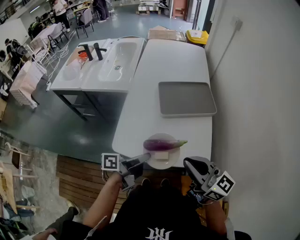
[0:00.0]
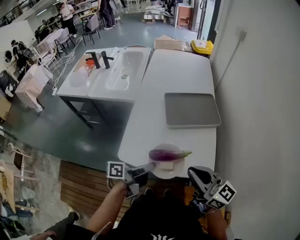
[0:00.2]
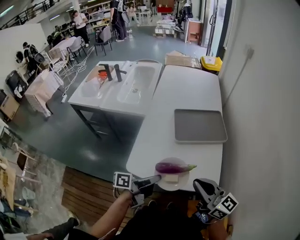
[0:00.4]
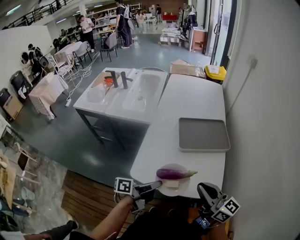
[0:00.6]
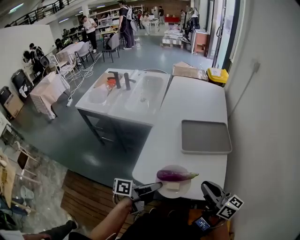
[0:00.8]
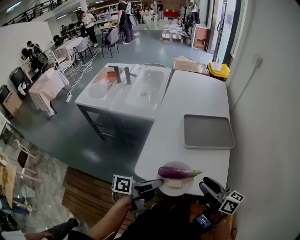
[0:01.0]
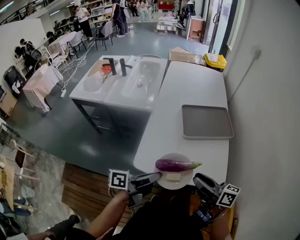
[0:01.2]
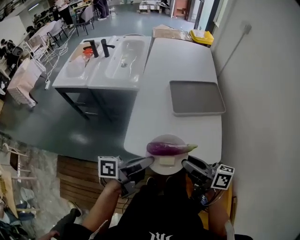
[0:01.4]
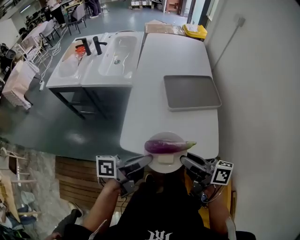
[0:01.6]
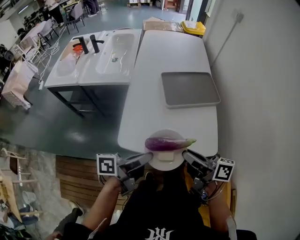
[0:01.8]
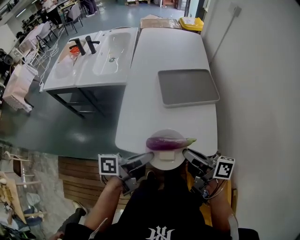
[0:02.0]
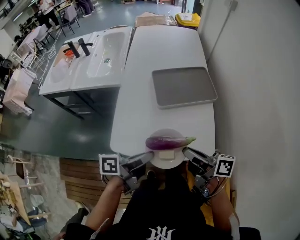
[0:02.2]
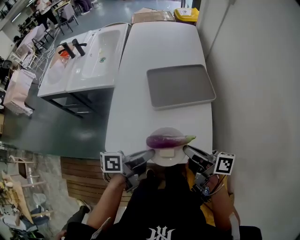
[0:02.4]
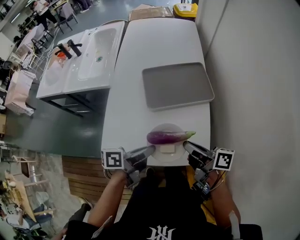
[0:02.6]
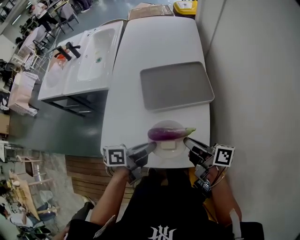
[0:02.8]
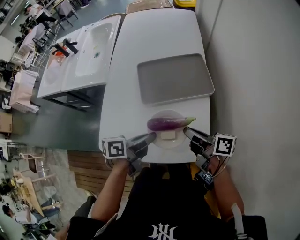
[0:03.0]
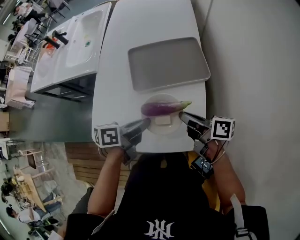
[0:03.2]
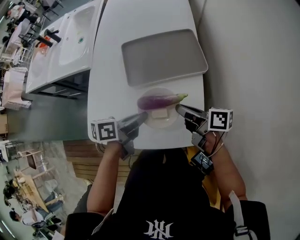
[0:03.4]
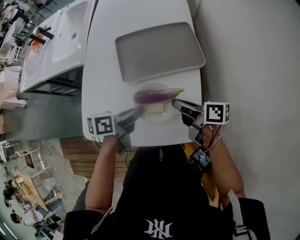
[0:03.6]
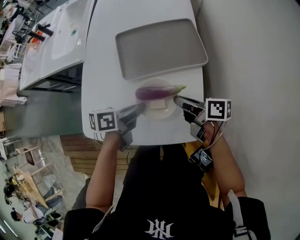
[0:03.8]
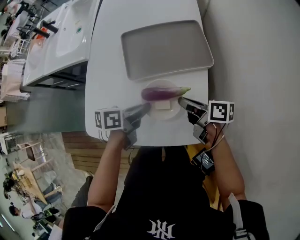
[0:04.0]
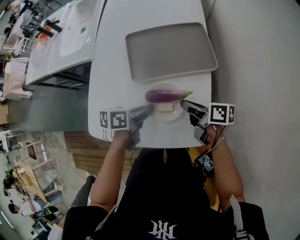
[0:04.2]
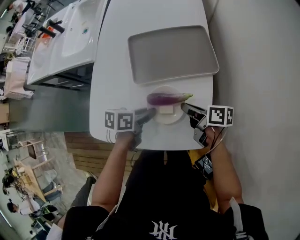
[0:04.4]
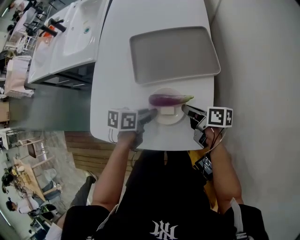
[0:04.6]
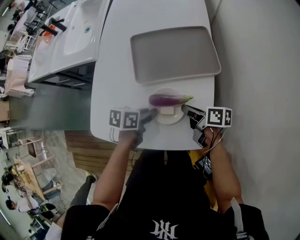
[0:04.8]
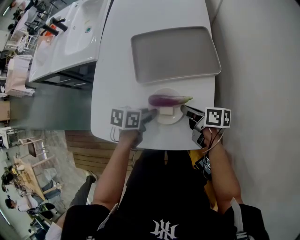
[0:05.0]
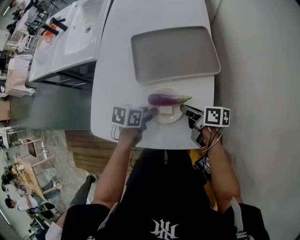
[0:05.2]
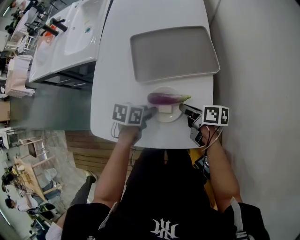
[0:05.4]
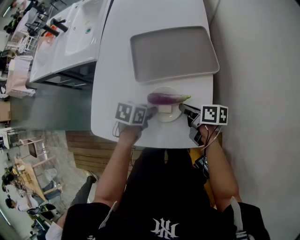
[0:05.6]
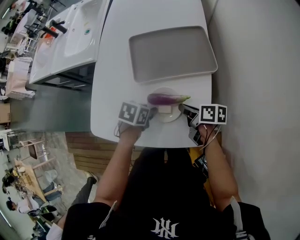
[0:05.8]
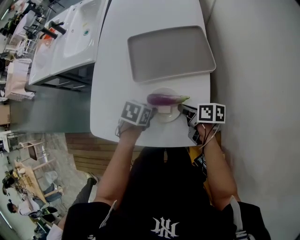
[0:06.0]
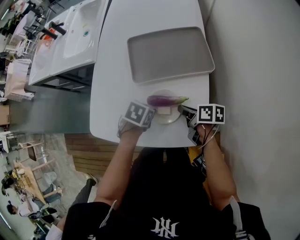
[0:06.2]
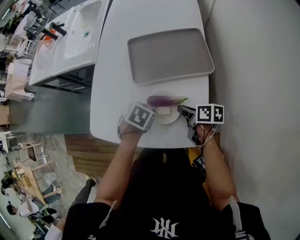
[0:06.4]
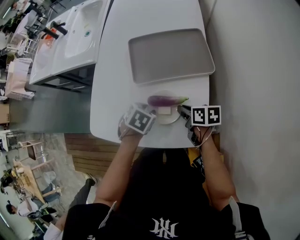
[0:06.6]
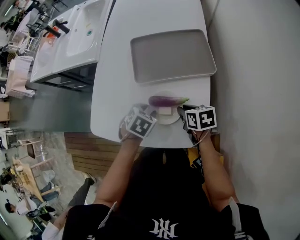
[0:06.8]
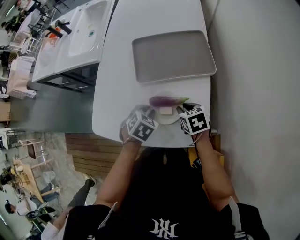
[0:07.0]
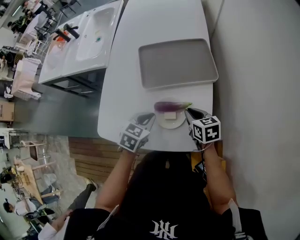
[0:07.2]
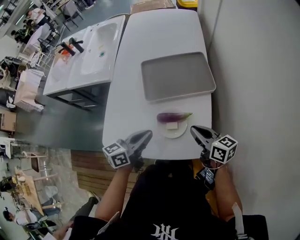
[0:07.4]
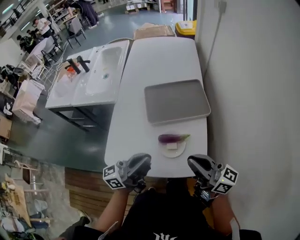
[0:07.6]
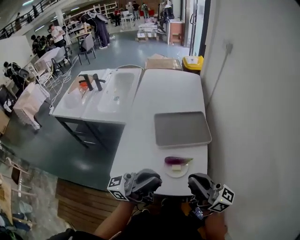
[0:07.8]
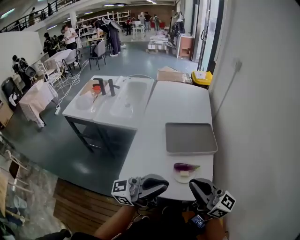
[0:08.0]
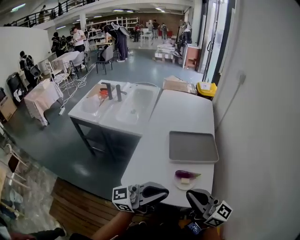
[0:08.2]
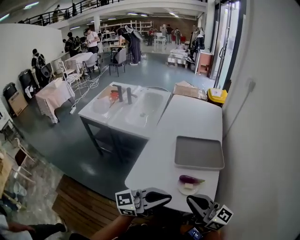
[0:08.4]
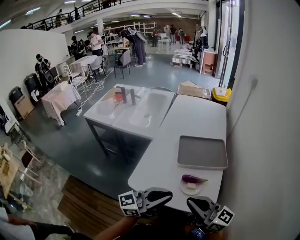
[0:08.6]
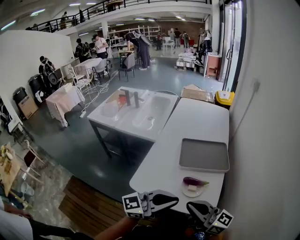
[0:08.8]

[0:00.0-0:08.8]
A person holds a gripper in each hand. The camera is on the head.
0:00.0 to 0:01.4: The left gripper shifts about 10 cm to the left, while the right gripper shifts about 10 cm to the left and downward, turns by approximately 40 degrees, and opens up.
0:01.4 to 0:03.0: Both grippers move to the right, forward and downward, roughly 30 cm. The right gripper closes its fingers.
0:03.0 to 0:04.4: The left gripper goes about 15 cm downward and forward, and changes its angle by about 20 degrees. Meanwhile the right gripper moves downward, roughly 15 cm.
0:04.4 to 0:05.8: The left gripper changes its angle by about 30 degrees.
0:05.8 to 0:07.4: Both grippers travel together upward, about 10 cm. The left gripper tips its fingers upward by about 50 degrees, and closes. Meanwhile the right gripper changes its angle by about 40 degrees.
0:07.4 to 0:08.8: The grippers both shift upward by about 25 cm. The left gripper changes its angle by roughly 40 degrees. The right gripper changes its angle by roughly 40 degrees.

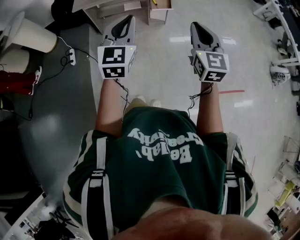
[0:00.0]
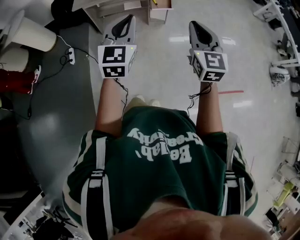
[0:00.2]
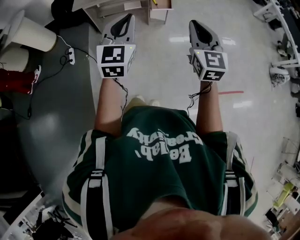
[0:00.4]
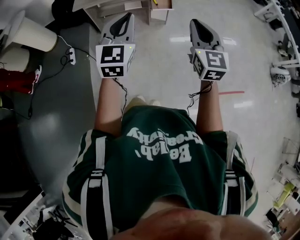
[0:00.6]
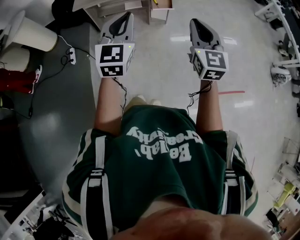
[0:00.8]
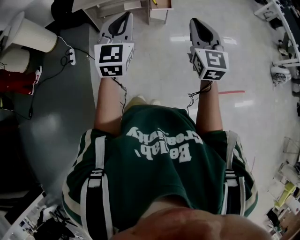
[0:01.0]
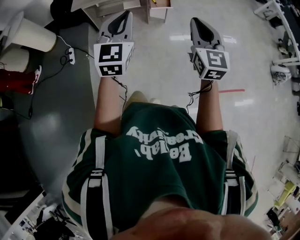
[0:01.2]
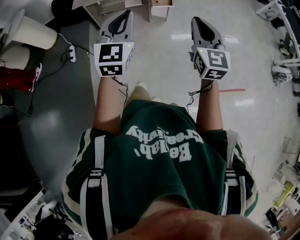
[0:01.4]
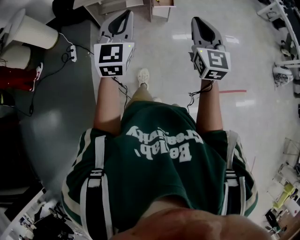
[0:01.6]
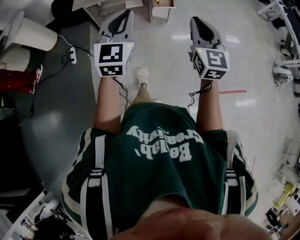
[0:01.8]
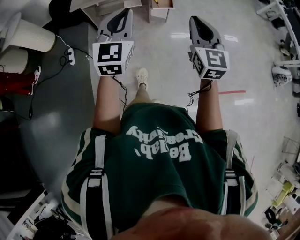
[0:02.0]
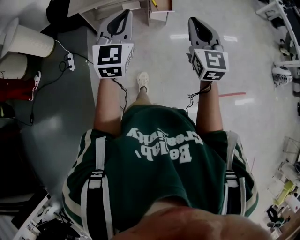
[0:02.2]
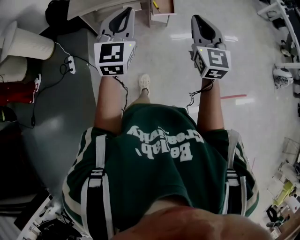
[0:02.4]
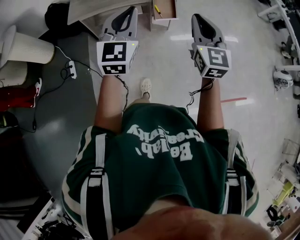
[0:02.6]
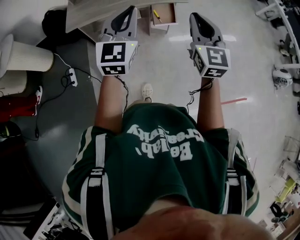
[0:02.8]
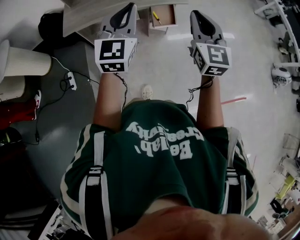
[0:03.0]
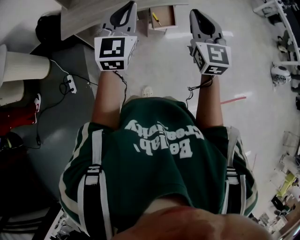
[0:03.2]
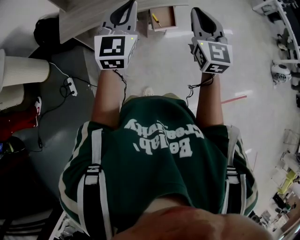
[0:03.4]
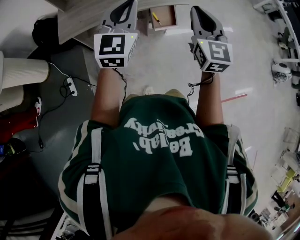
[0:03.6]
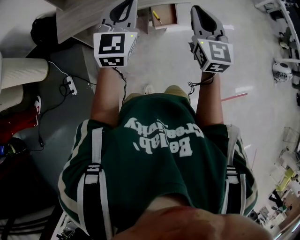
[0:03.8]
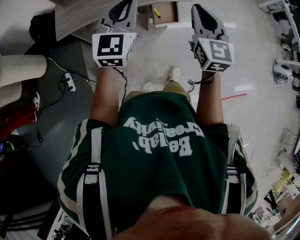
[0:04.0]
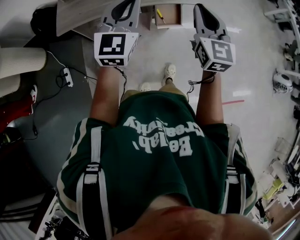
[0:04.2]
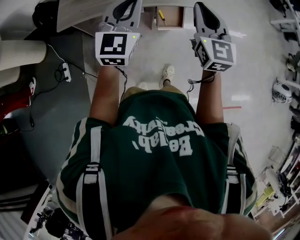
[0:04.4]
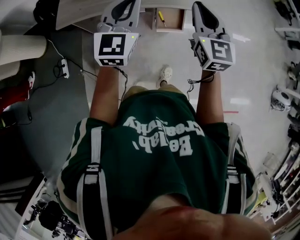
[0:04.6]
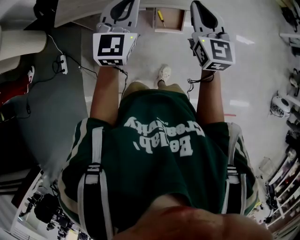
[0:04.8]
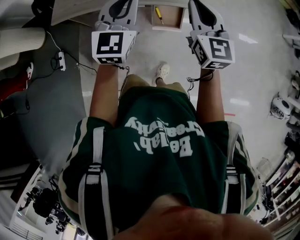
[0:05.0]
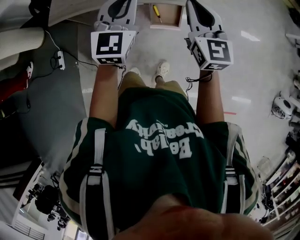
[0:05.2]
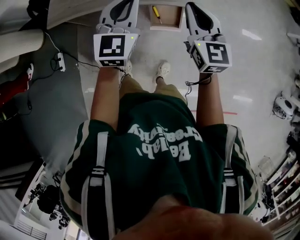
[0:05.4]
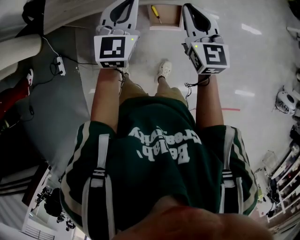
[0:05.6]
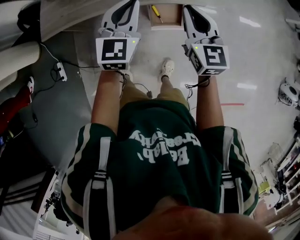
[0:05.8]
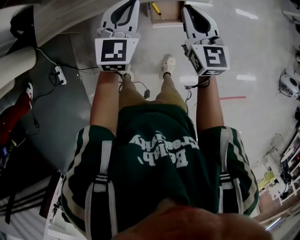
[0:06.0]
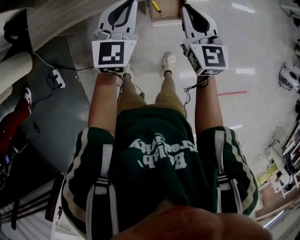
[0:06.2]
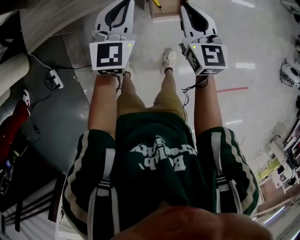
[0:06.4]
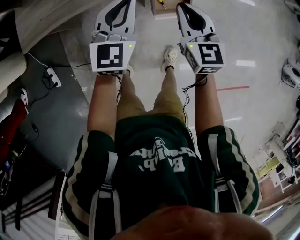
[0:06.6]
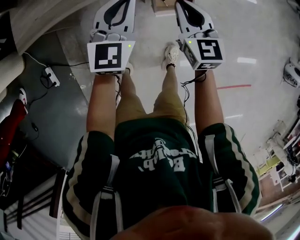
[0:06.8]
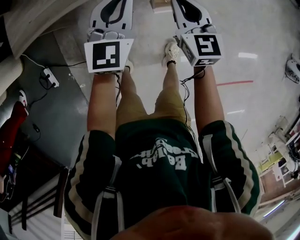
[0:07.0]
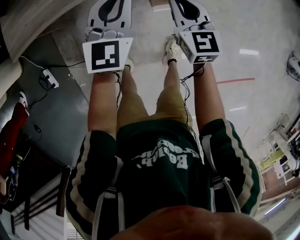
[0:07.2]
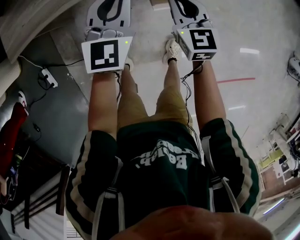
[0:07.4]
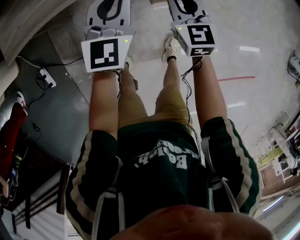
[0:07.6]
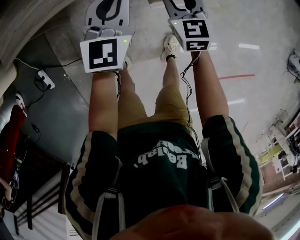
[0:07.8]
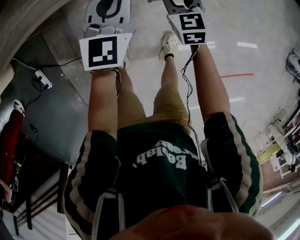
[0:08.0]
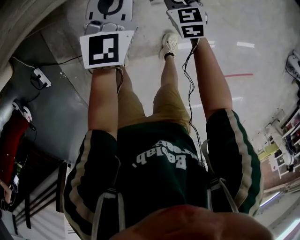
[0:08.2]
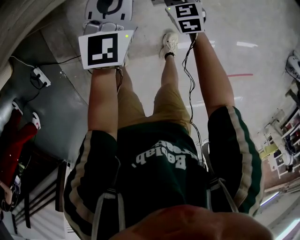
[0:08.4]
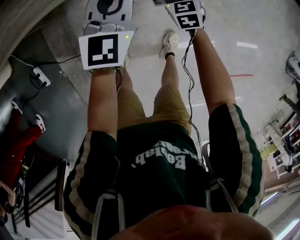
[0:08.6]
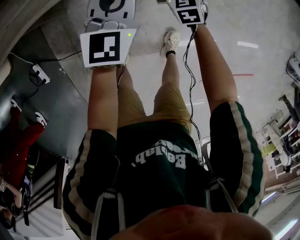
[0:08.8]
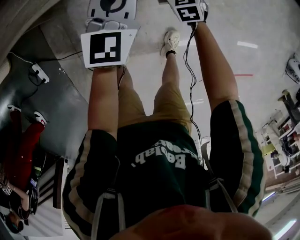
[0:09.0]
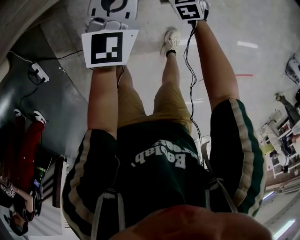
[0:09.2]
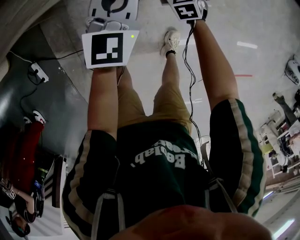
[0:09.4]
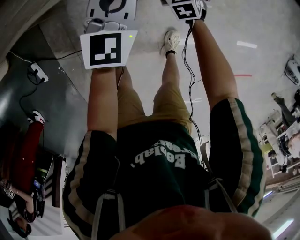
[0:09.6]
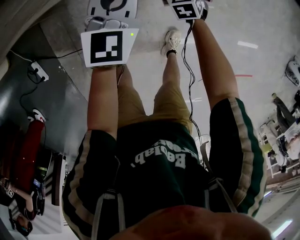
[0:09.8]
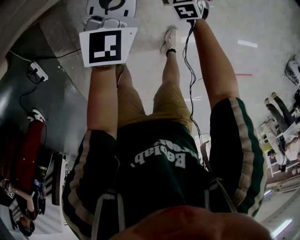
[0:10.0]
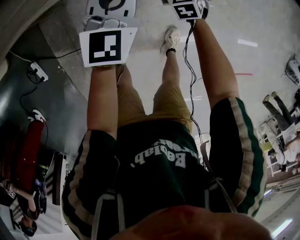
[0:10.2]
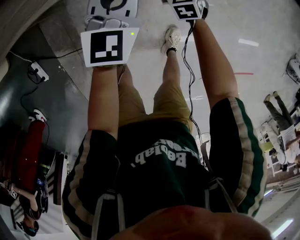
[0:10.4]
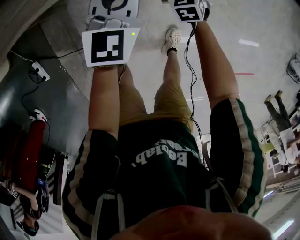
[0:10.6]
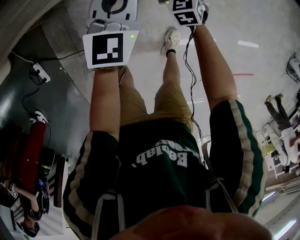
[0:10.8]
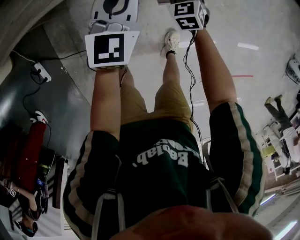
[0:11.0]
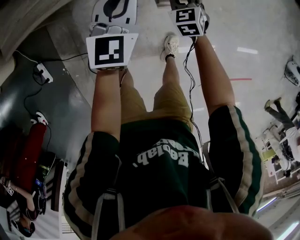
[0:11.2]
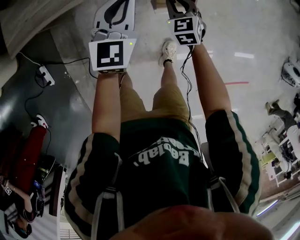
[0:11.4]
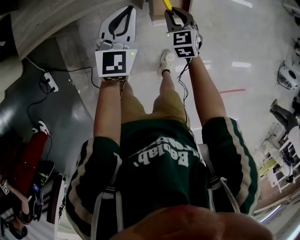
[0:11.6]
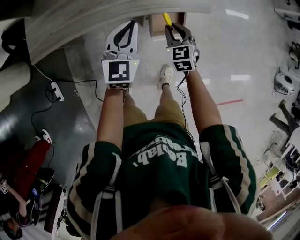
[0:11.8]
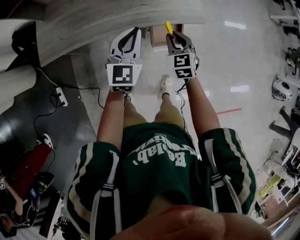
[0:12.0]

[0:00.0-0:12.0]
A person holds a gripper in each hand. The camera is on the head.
0:00.0 to 0:01.6: There are only small adjustments of the grippers.
0:01.6 to 0:03.0: The two grippers go approximately 35 cm forward.
0:03.0 to 0:04.4: The two grippers go approximately 20 cm forward.
0:04.4 to 0:06.0: Both grippers travel together downward and forward, roughly 25 cm.
0:06.0 to 0:07.6: Both grippers move downward, approximately 20 cm.
0:07.6 to 0:09.0: The left gripper travels downward by some 5 cm; the right gripper travels downward by roughly 20 cm, rotates about 30 degrees, and opens its fingers.
0:09.0 to 0:10.4: There are only small adjustments of the grippers.
0:10.4 to 0:12.0: The two grippers go about 30 cm upward.

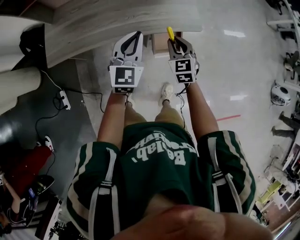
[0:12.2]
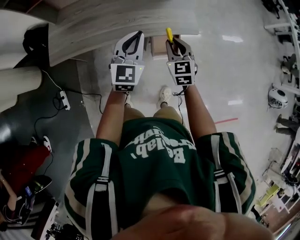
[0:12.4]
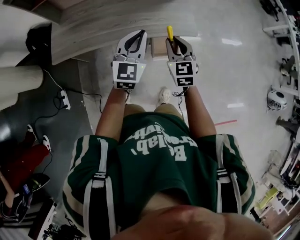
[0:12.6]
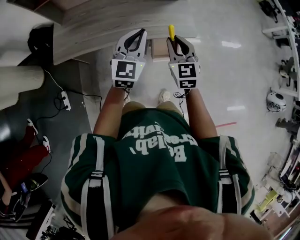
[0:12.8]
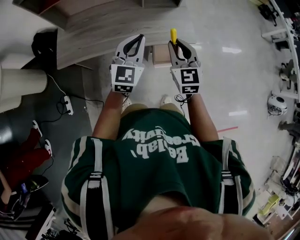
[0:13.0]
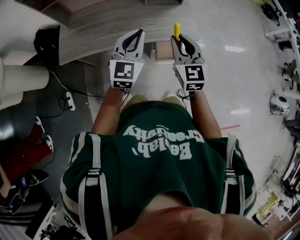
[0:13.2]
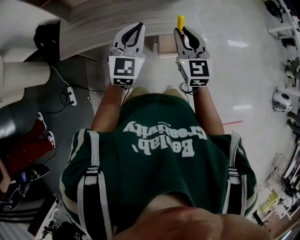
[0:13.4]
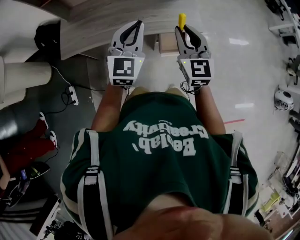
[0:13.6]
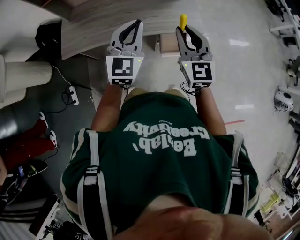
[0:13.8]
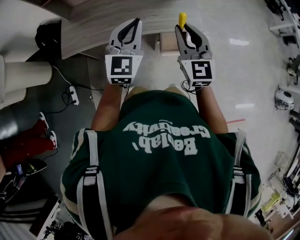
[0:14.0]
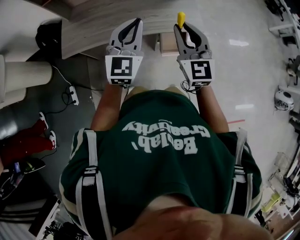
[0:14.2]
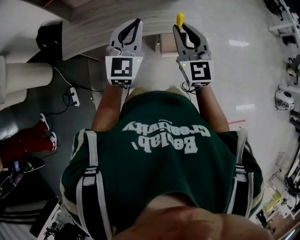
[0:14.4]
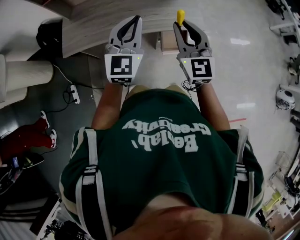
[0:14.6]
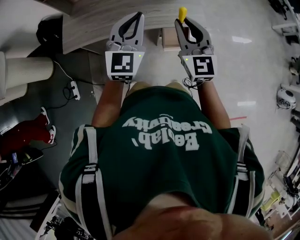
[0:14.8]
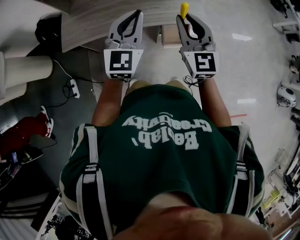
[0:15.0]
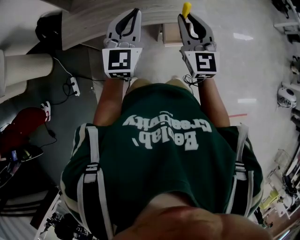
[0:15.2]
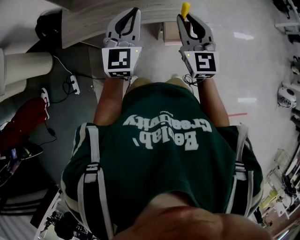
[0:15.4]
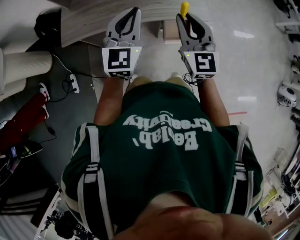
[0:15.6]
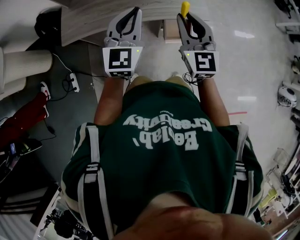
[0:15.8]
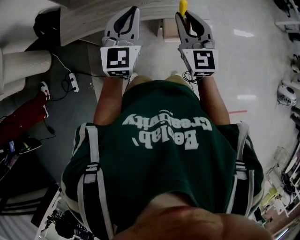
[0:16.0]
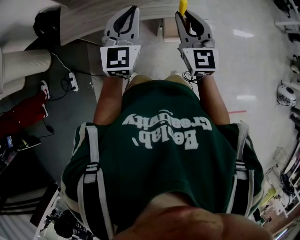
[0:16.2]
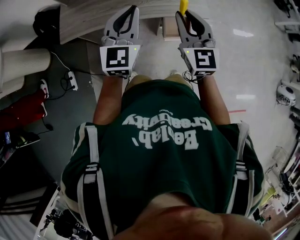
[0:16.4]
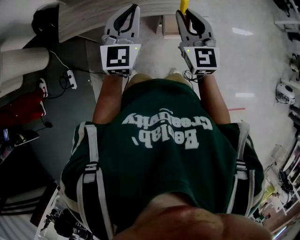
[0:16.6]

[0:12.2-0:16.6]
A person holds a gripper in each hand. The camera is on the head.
0:12.2 to 0:13.6: The right gripper heads upward, covering about 20 cm, and turns by some 20 degrees, while the left gripper shifts some 15 cm upward and backward.
0:13.6 to 0:16.6: The grippers stay close to where they were, moving slightly.
